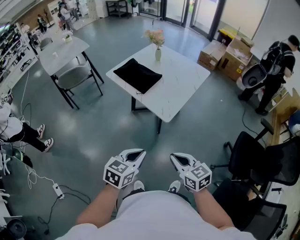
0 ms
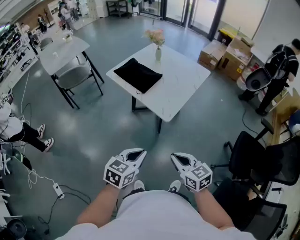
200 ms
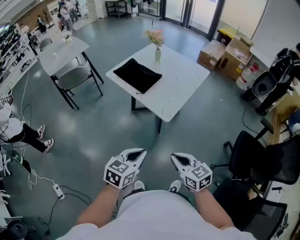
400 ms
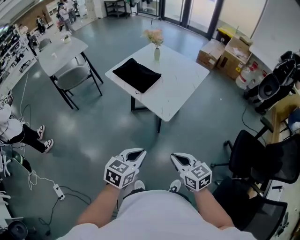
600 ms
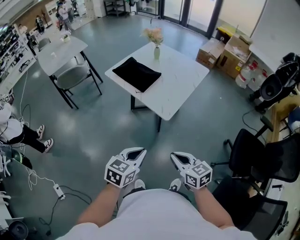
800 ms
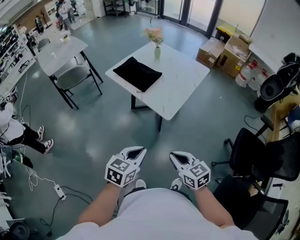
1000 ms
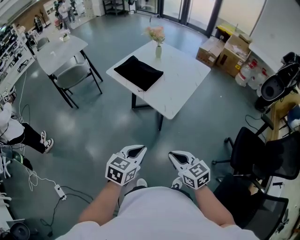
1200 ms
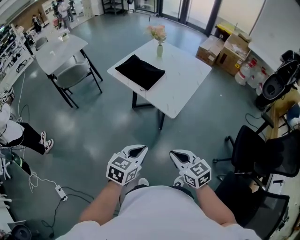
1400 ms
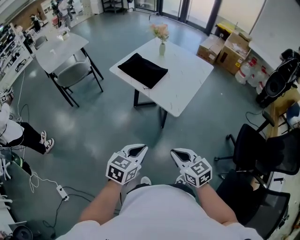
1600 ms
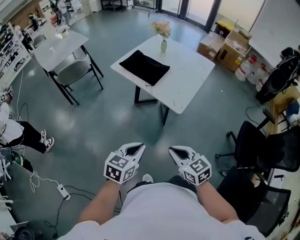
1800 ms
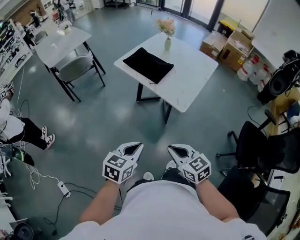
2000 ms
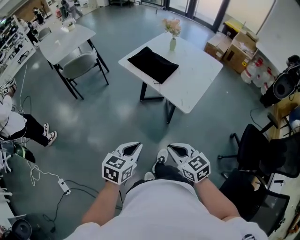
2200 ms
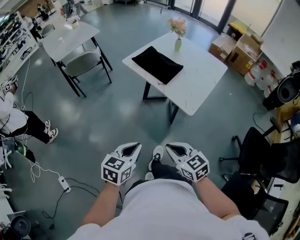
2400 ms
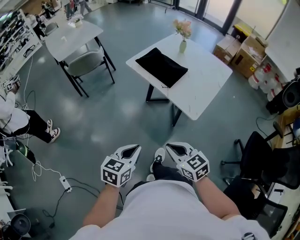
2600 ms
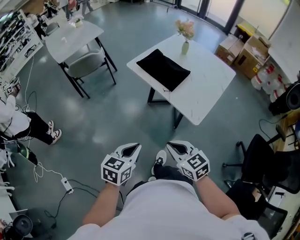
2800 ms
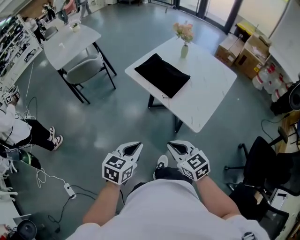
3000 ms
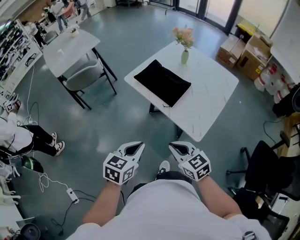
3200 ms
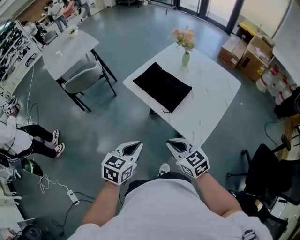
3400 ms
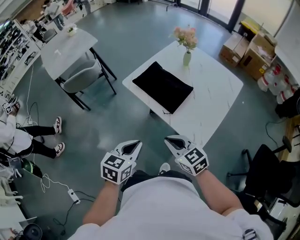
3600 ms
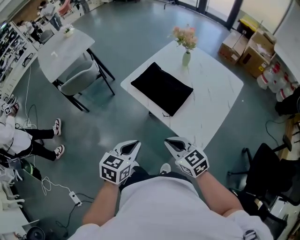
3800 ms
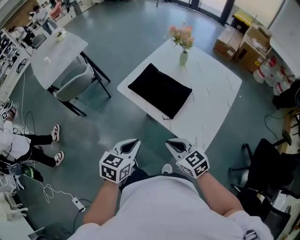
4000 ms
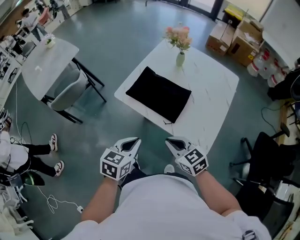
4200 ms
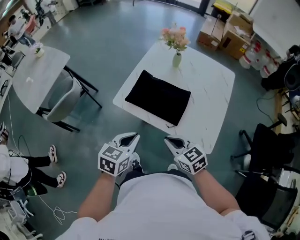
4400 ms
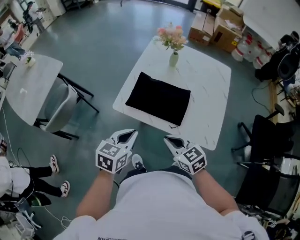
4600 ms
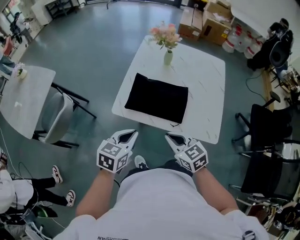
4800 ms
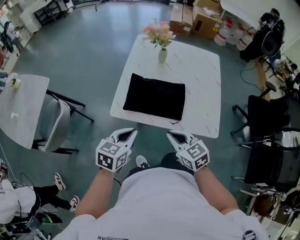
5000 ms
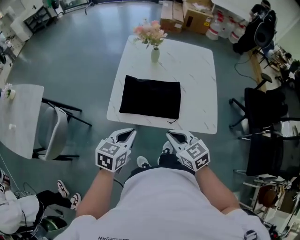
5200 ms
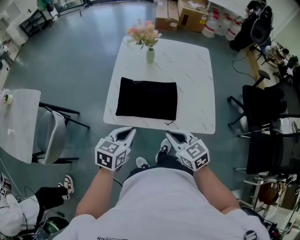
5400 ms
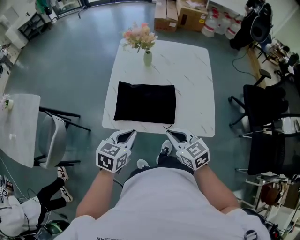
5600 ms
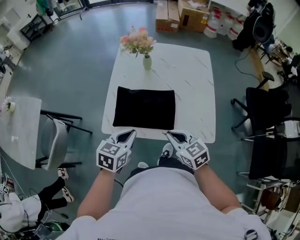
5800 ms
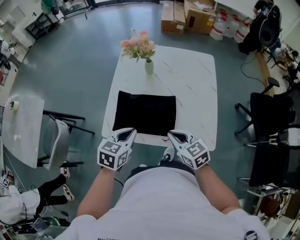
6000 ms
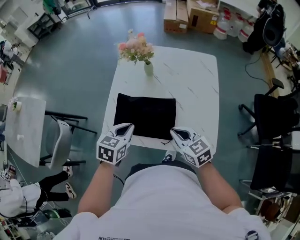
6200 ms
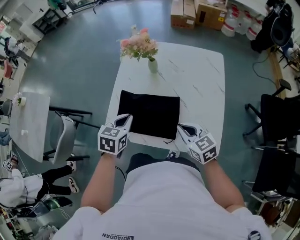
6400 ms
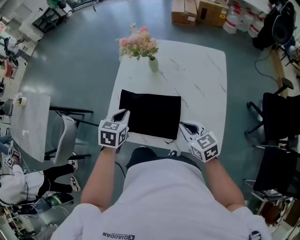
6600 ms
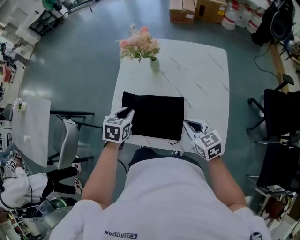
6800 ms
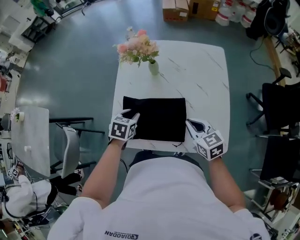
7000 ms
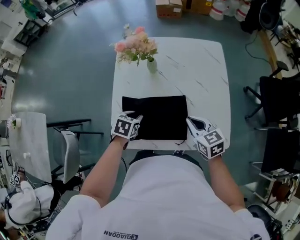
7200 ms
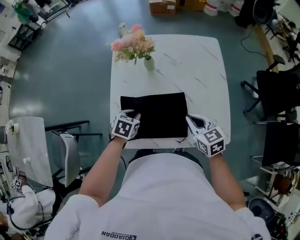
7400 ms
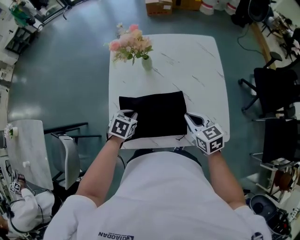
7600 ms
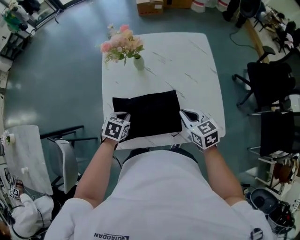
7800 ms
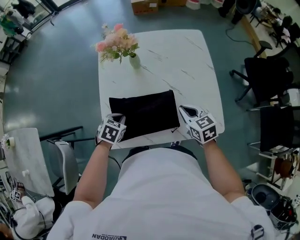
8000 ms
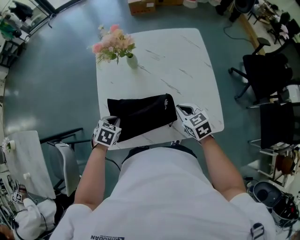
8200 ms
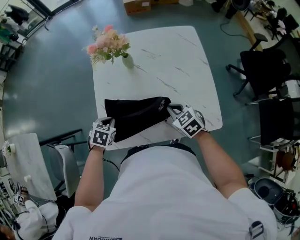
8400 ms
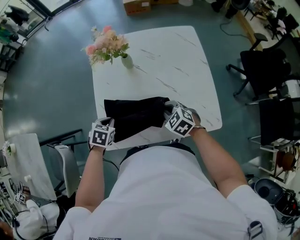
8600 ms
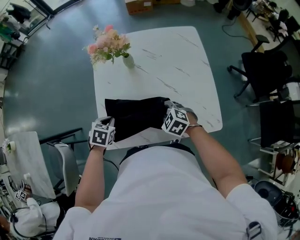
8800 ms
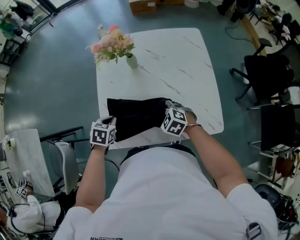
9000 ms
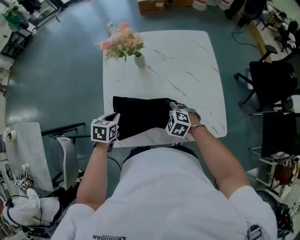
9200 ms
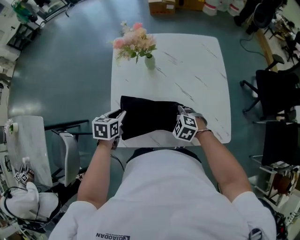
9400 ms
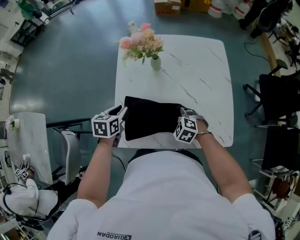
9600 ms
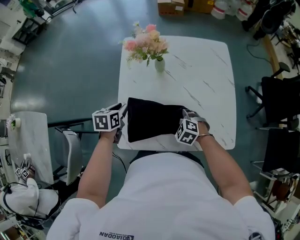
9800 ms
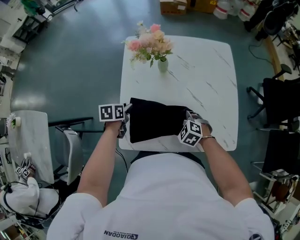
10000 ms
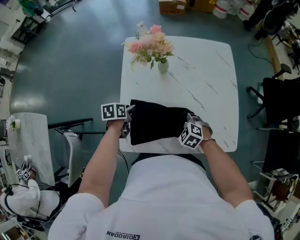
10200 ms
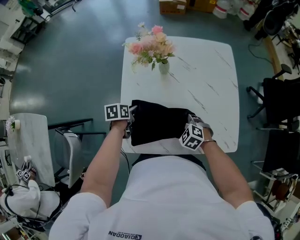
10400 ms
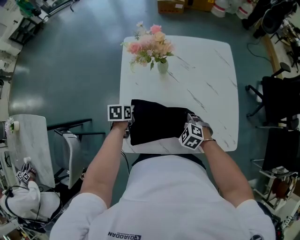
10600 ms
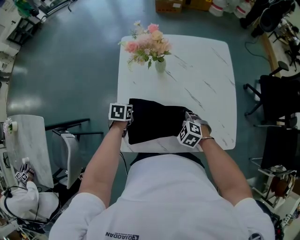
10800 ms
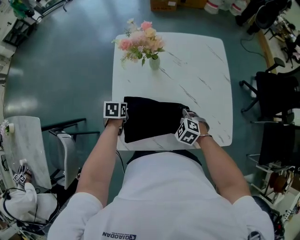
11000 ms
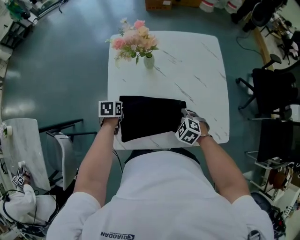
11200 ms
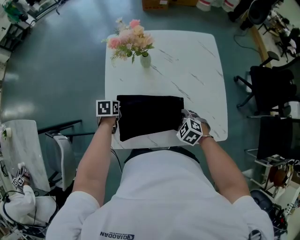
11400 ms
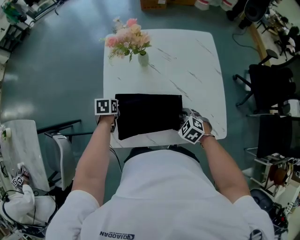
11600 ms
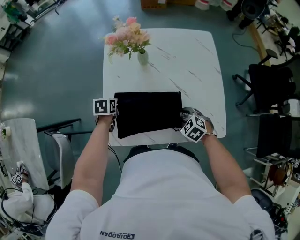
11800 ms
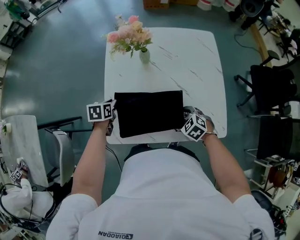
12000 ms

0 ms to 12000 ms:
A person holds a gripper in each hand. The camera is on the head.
0 ms to 1600 ms: The two grippers go roughly 5 cm to the left.
1600 ms to 3000 ms: The two grippers go roughly 20 cm forward and to the left.
3000 ms to 4400 ms: Both grippers travel together forward, some 30 cm.
4400 ms to 6000 ms: The two grippers go some 15 cm forward. The right gripper rotates some 20 degrees.
6000 ms to 7600 ms: The right gripper travels forward by about 10 cm; the left gripper goes about 20 cm forward and downward, swivels some 30 degrees, and opens, then closes once more.
7600 ms to 9000 ms: The left gripper is displaced to the left by approximately 5 cm, while the right gripper heads downward and to the left, covering about 10 cm, swivels approximately 40 degrees, and opens up.
9000 ms to 10400 ms: The left gripper shifts roughly 10 cm forward and downward, swivels about 40 degrees, and opens its fingers.
10400 ms to 12000 ms: The right gripper is displaced to the right by roughly 10 cm.

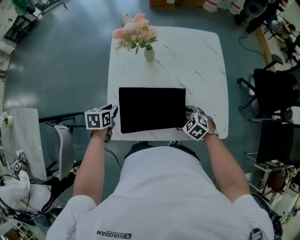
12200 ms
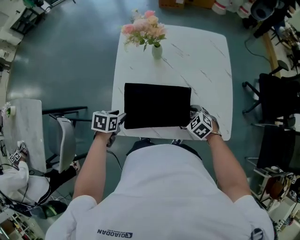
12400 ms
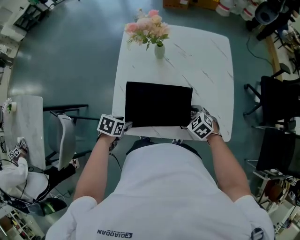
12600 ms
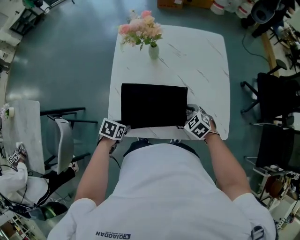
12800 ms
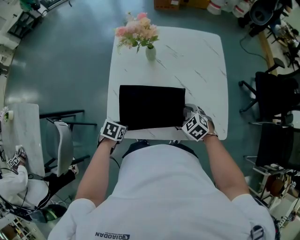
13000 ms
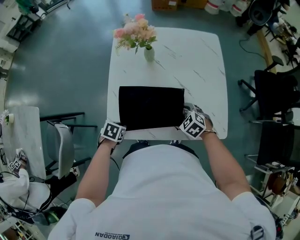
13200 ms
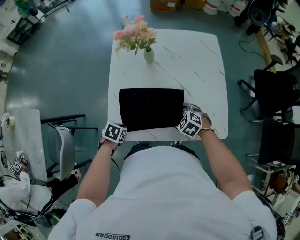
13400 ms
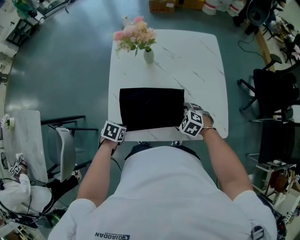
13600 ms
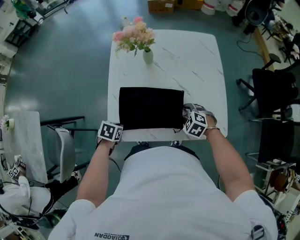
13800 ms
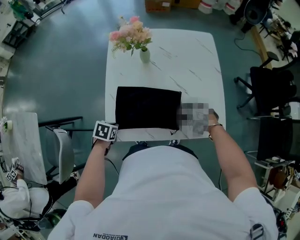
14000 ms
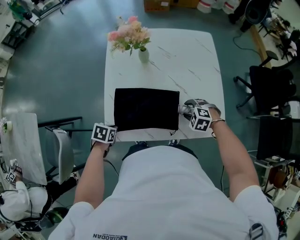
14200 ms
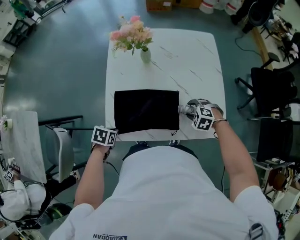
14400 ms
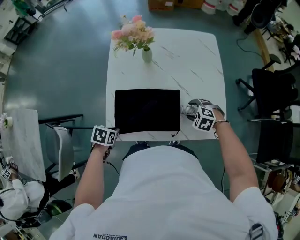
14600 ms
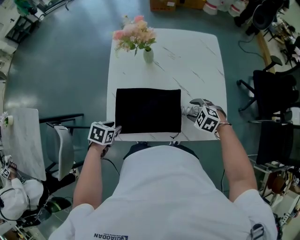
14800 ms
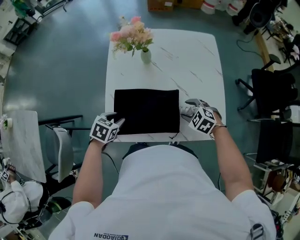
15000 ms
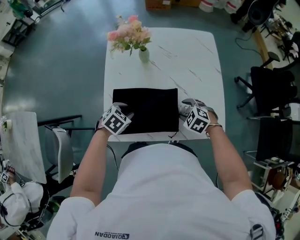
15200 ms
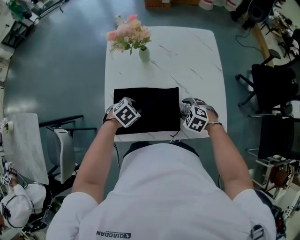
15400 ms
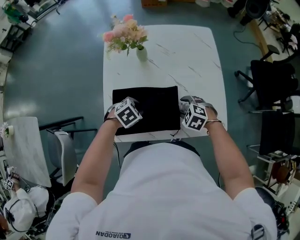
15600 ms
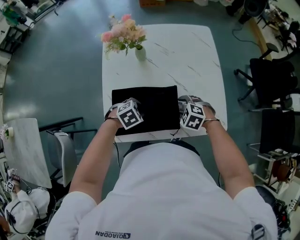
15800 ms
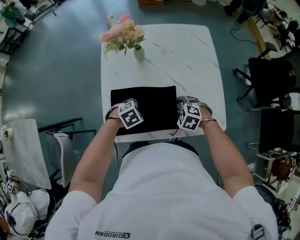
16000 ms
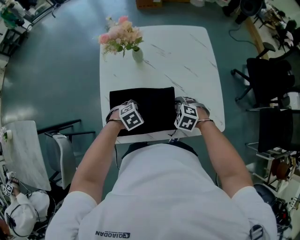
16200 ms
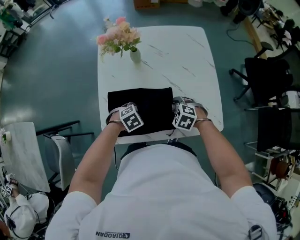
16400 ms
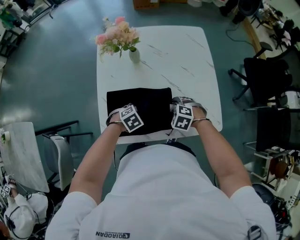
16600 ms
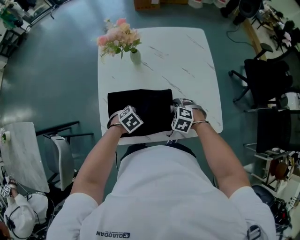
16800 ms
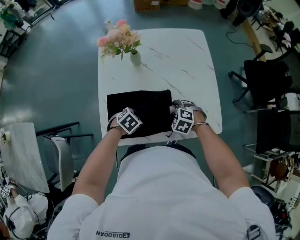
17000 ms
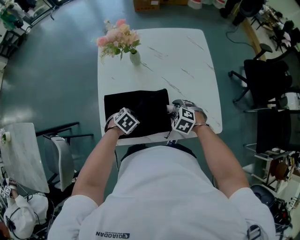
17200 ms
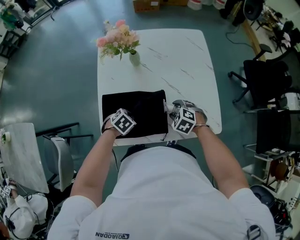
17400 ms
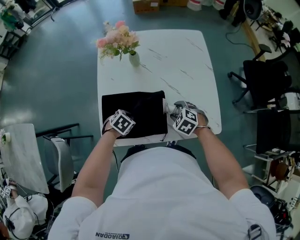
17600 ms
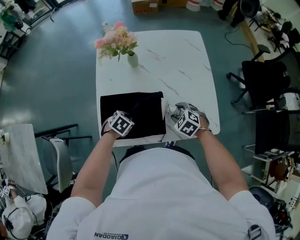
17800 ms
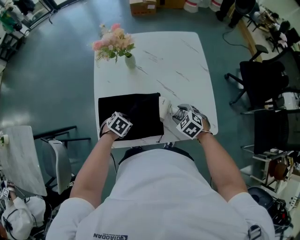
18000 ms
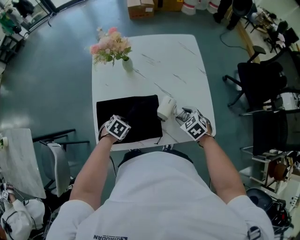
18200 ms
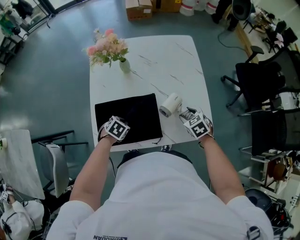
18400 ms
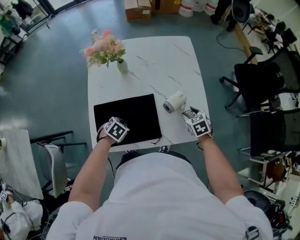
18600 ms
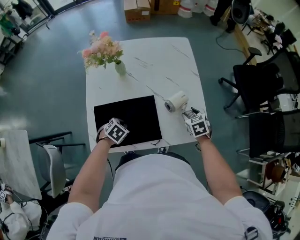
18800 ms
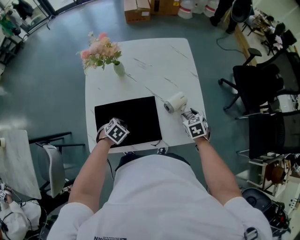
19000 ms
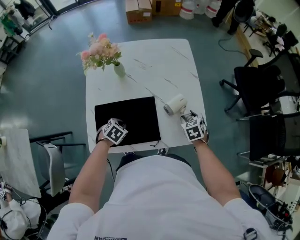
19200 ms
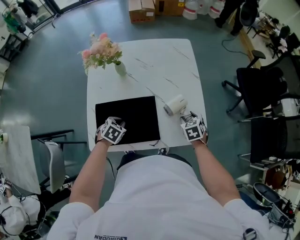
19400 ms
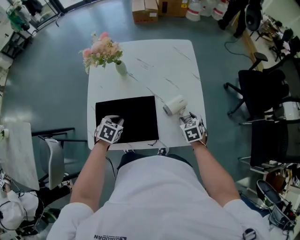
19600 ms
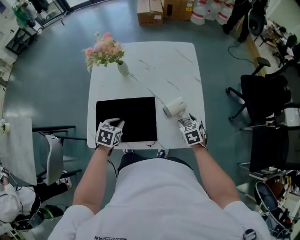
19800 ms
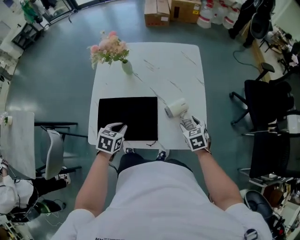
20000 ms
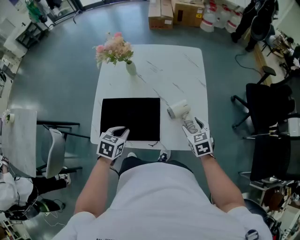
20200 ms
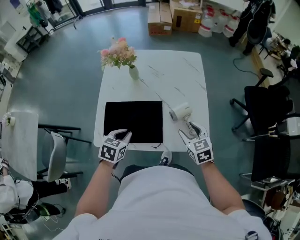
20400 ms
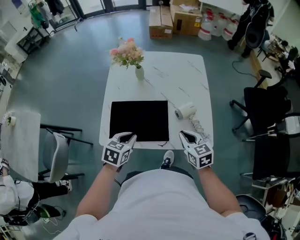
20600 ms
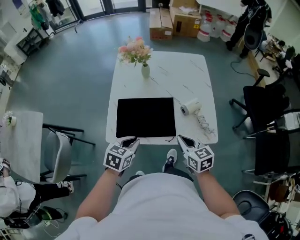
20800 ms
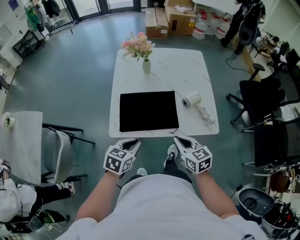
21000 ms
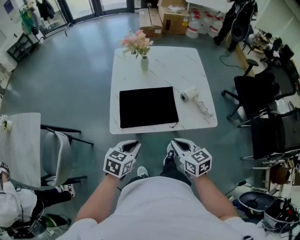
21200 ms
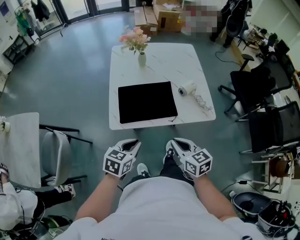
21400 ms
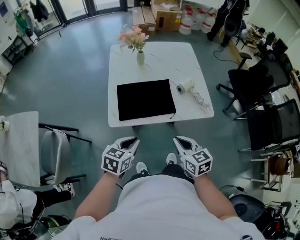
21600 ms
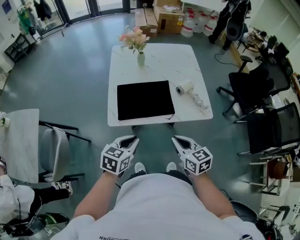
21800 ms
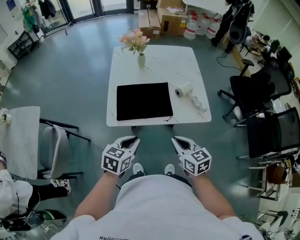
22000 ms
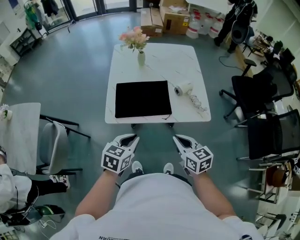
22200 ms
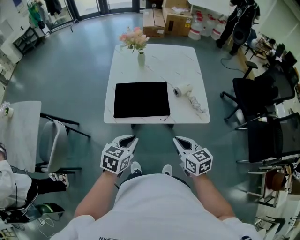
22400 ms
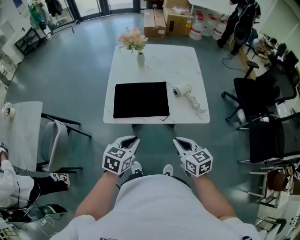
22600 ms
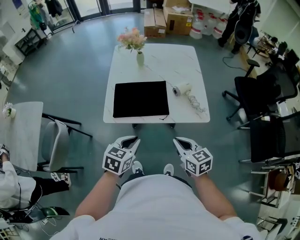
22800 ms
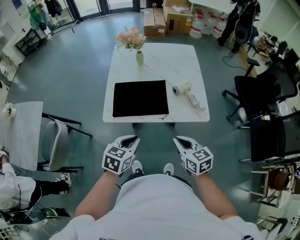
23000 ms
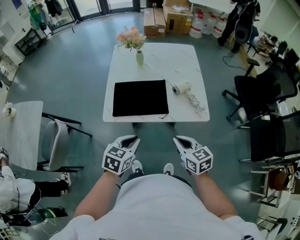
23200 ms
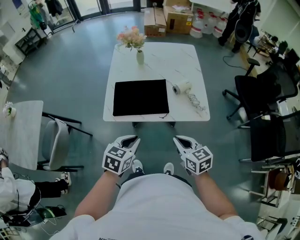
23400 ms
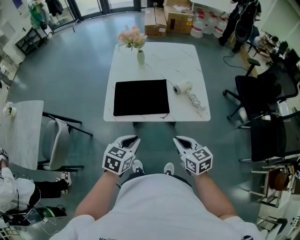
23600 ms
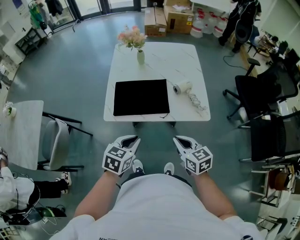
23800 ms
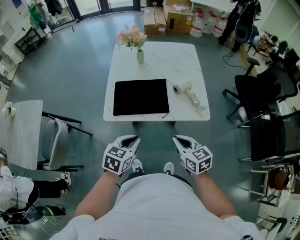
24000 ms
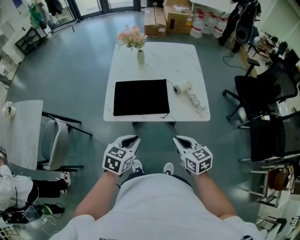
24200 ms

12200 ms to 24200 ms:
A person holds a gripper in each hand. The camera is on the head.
12200 ms to 13800 ms: The left gripper is displaced backward and downward by approximately 10 cm, rotates approximately 20 degrees, and opens and closes again.
13800 ms to 15200 ms: The left gripper goes approximately 10 cm to the right and forward, rotates some 30 degrees, and opens its fingers.
15200 ms to 16600 ms: The left gripper ends up about 10 cm from where it was, turns by approximately 20 degrees, and closes.
16600 ms to 18200 ms: The right gripper ends up some 10 cm from where it was, and swivels about 30 degrees. The left gripper turns by approximately 20 degrees.
18200 ms to 19800 ms: The right gripper is displaced to the right by about 10 cm. Meanwhile the left gripper goes approximately 5 cm upward, and changes its angle by roughly 30 degrees.
19800 ms to 21200 ms: The left gripper goes roughly 25 cm backward and upward, and changes its angle by approximately 20 degrees, while the right gripper moves backward, to the left and upward, roughly 35 cm, turns by approximately 30 degrees, and closes.
21200 ms to 22600 ms: The grippers both shift to the right by some 5 cm.
22600 ms to 24200 ms: Both grippers stay put.
